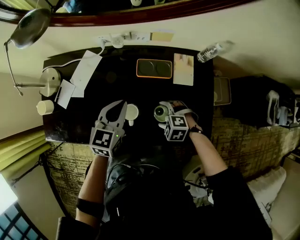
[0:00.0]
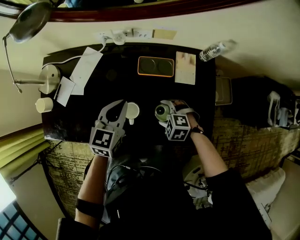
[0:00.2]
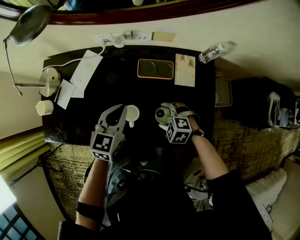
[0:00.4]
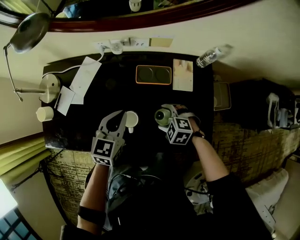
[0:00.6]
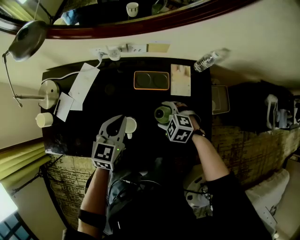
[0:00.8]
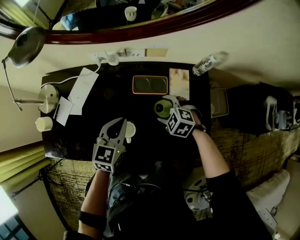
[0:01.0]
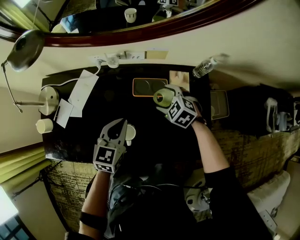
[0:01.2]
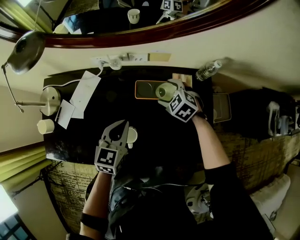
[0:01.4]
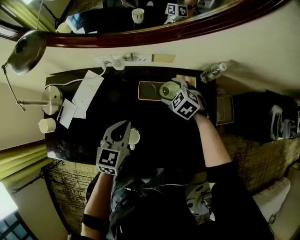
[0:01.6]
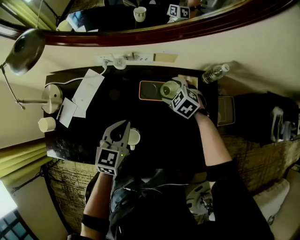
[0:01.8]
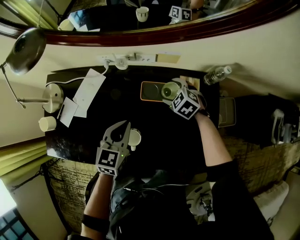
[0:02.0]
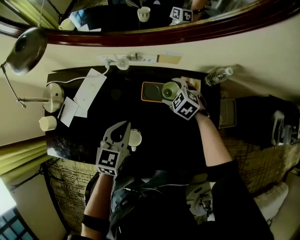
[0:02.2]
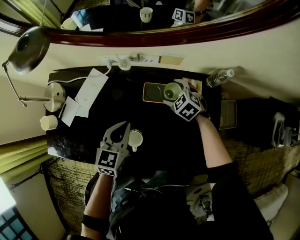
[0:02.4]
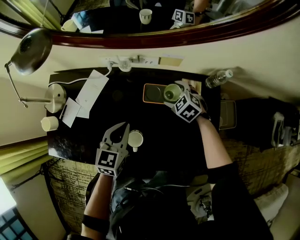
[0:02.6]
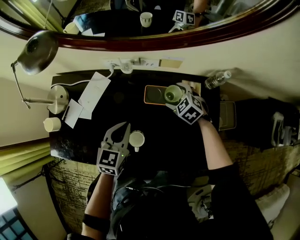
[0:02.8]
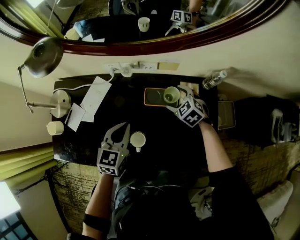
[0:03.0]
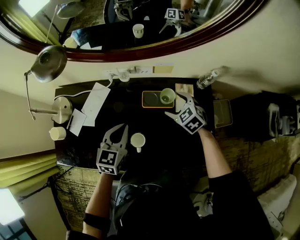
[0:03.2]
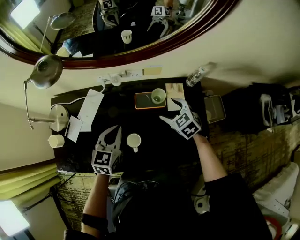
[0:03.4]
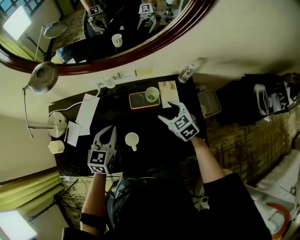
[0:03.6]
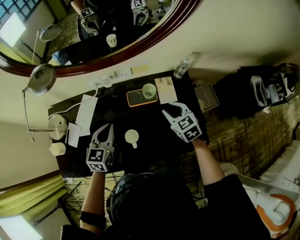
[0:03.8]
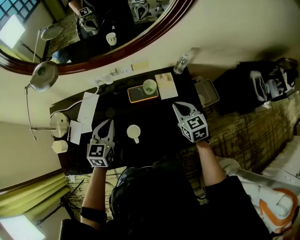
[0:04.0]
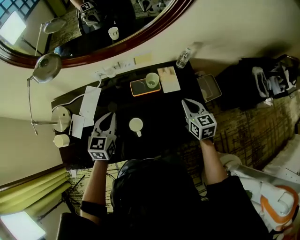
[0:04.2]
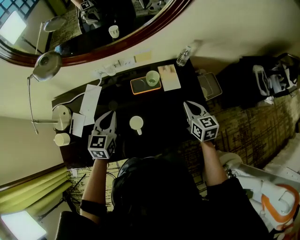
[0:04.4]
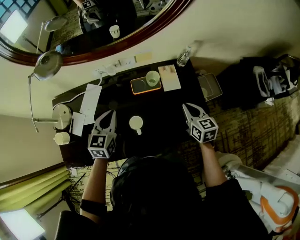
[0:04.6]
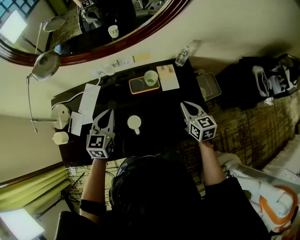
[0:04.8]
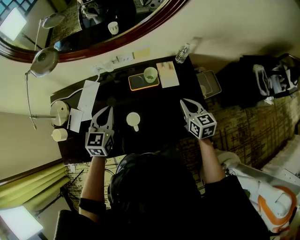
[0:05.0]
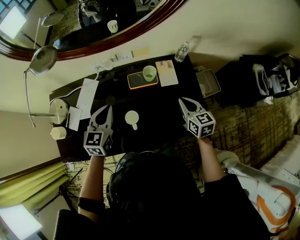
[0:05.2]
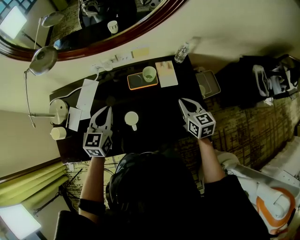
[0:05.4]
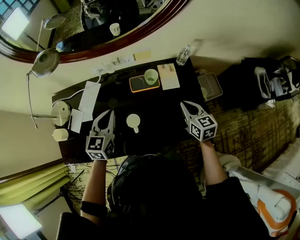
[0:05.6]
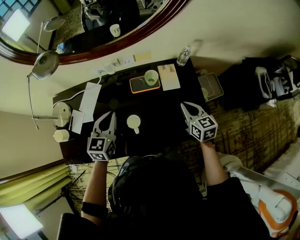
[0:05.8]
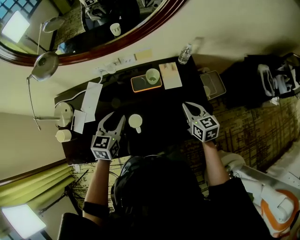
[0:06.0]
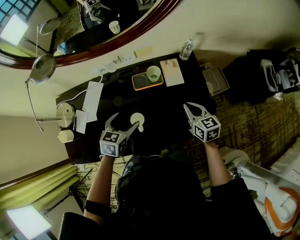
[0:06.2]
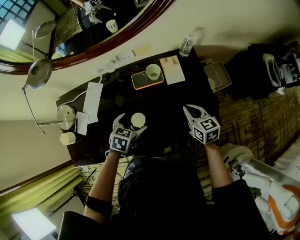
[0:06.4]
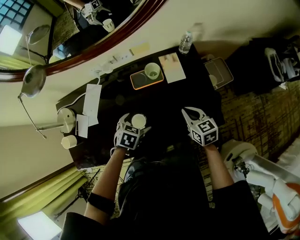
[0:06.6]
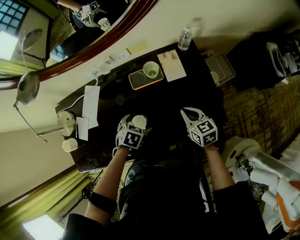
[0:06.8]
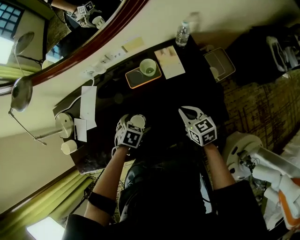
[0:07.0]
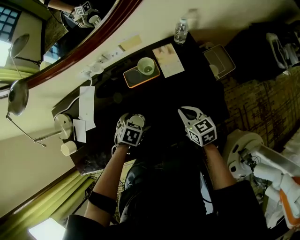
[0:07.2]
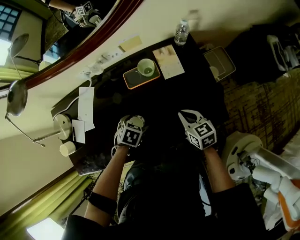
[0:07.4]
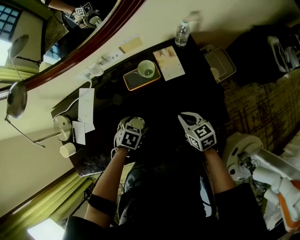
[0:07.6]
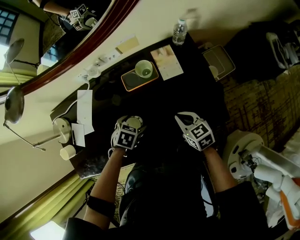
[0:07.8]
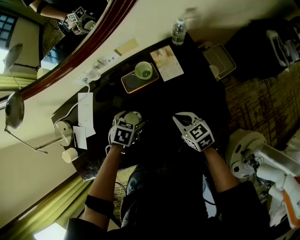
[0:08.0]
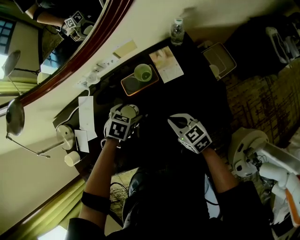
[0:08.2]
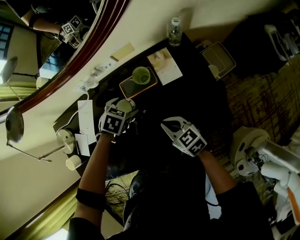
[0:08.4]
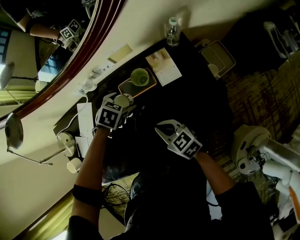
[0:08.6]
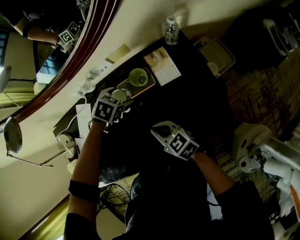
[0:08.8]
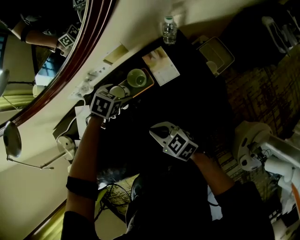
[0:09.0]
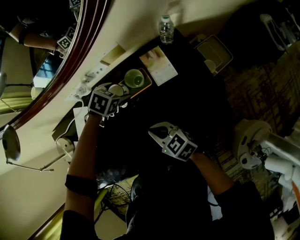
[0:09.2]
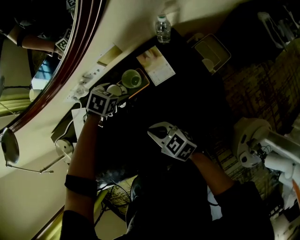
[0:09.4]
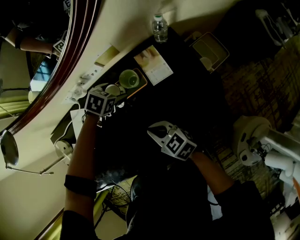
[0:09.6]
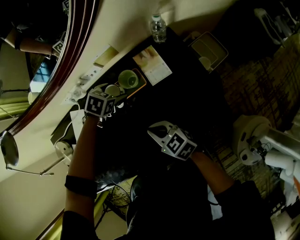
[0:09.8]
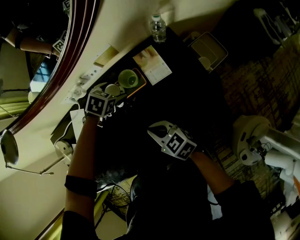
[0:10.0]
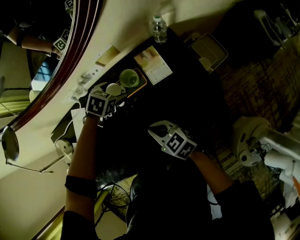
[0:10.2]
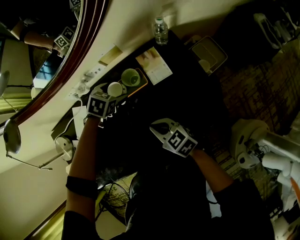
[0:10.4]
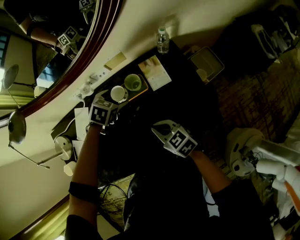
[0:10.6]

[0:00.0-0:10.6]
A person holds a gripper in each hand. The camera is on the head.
0.0 to 1.6 s: The right gripper travels forward by about 20 cm, and turns by some 30 degrees.
1.6 to 3.0 s: The grippers move only a little.
3.0 to 4.6 s: The right gripper moves backward, upward and to the right, some 25 cm, rotates around the line of its fingers by approximately 50 degrees, clockwise from behind, and closes; the left gripper moves approximately 5 cm.
4.6 to 6.0 s: There are only small adjustments of the grippers.
6.0 to 7.6 s: The right gripper shifts approximately 15 cm downward and backward. Meanwhile the left gripper moves downward and to the right, some 20 cm, tips its fingers downward by about 40 degrees, and opens.
7.6 to 9.0 s: The right gripper moves to the left, some 15 cm. The left gripper moves forward, about 20 cm.
9.0 to 10.6 s: The left gripper moves some 5 cm.

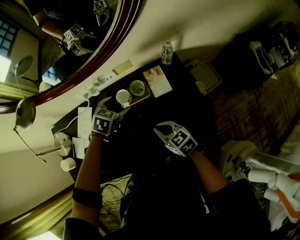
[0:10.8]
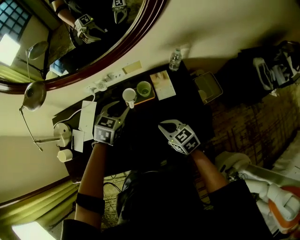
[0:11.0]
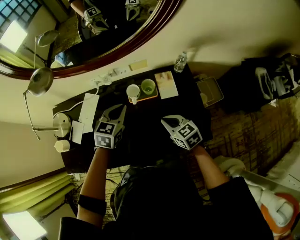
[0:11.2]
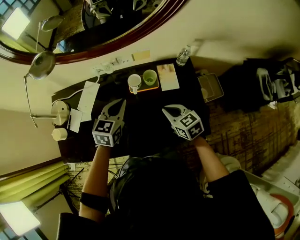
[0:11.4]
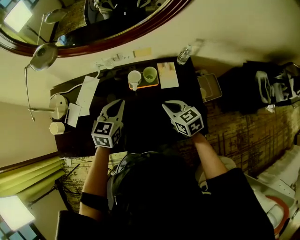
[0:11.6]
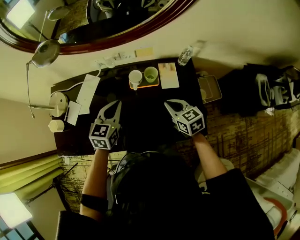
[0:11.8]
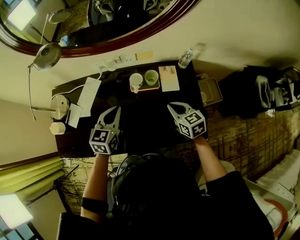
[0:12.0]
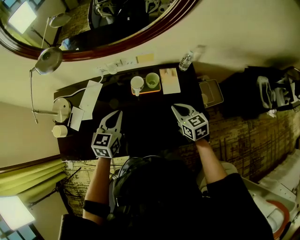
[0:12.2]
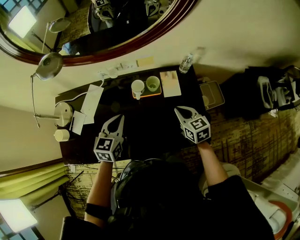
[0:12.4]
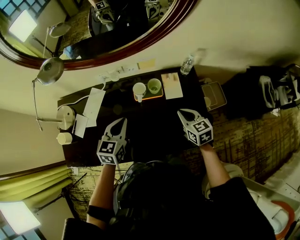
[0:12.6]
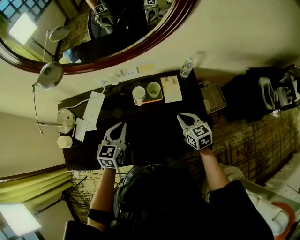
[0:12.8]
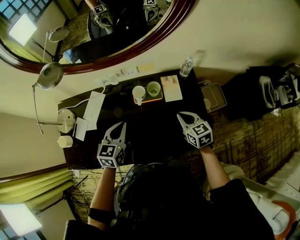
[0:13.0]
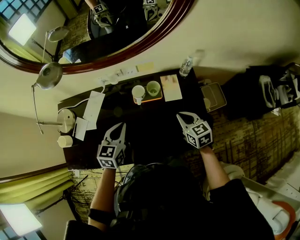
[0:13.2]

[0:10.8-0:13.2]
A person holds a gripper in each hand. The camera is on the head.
10.8 to 12.0 s: The right gripper goes approximately 5 cm to the right; the left gripper goes about 15 cm backward, to the left and upward, tilts its fingers roughly 30 degrees upward, and closes up.
12.0 to 13.2 s: The grippers stay close to where they were, moving slightly.

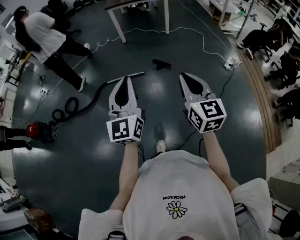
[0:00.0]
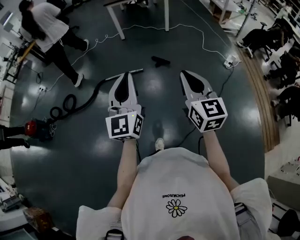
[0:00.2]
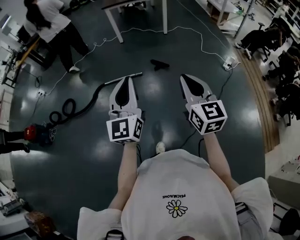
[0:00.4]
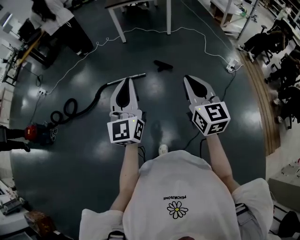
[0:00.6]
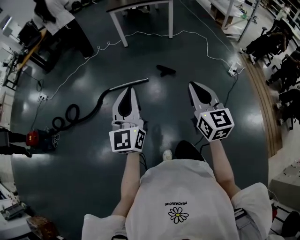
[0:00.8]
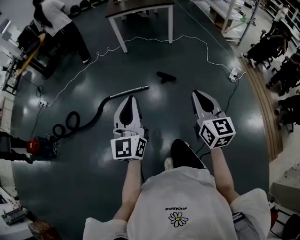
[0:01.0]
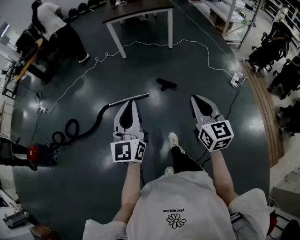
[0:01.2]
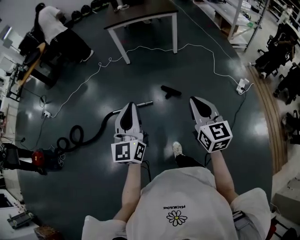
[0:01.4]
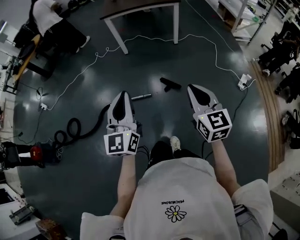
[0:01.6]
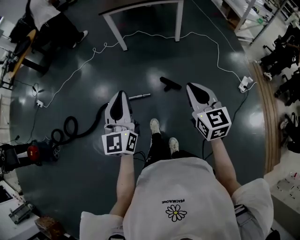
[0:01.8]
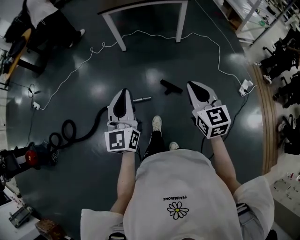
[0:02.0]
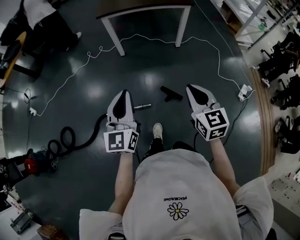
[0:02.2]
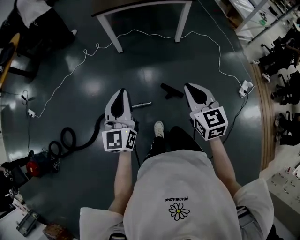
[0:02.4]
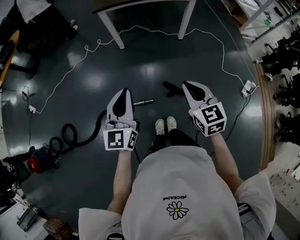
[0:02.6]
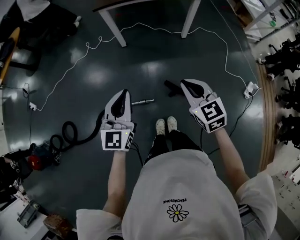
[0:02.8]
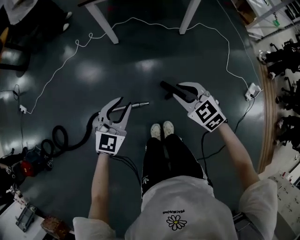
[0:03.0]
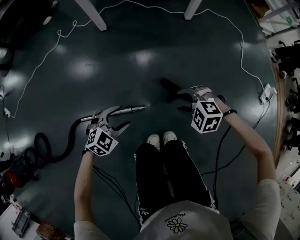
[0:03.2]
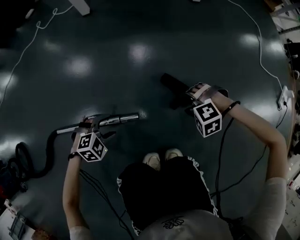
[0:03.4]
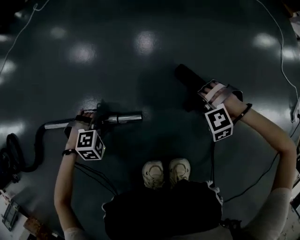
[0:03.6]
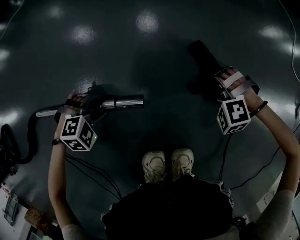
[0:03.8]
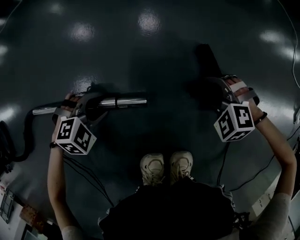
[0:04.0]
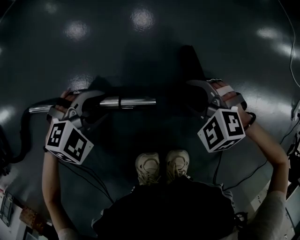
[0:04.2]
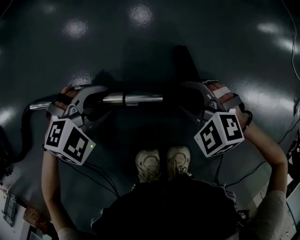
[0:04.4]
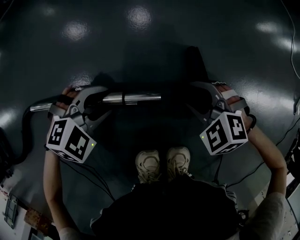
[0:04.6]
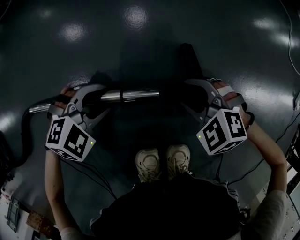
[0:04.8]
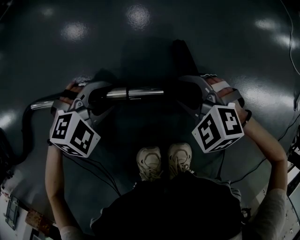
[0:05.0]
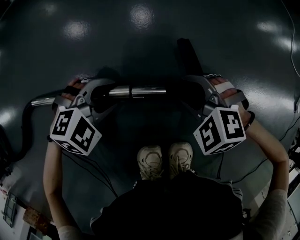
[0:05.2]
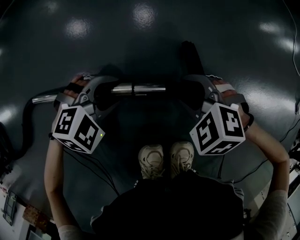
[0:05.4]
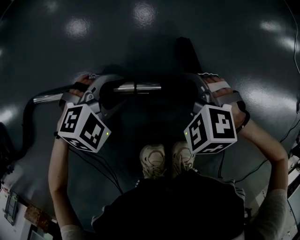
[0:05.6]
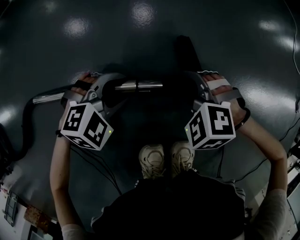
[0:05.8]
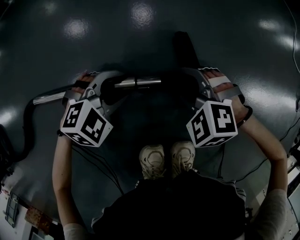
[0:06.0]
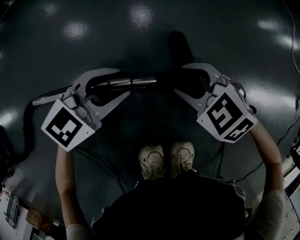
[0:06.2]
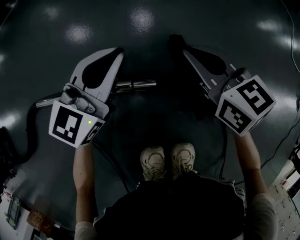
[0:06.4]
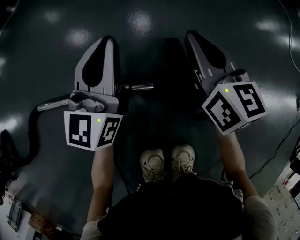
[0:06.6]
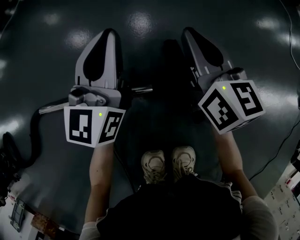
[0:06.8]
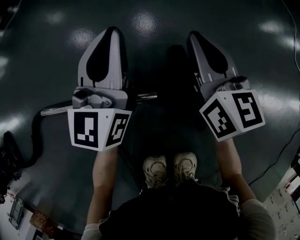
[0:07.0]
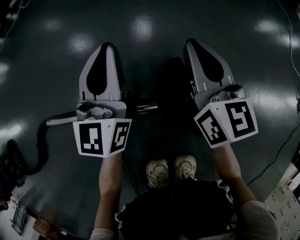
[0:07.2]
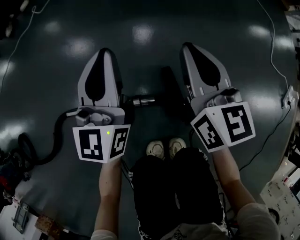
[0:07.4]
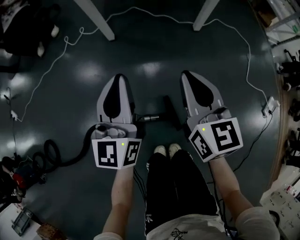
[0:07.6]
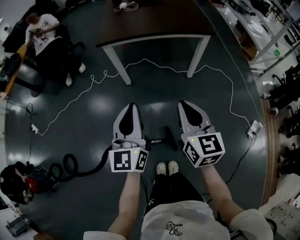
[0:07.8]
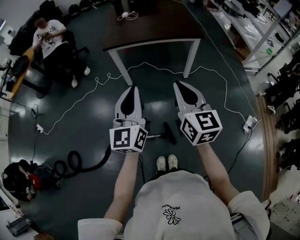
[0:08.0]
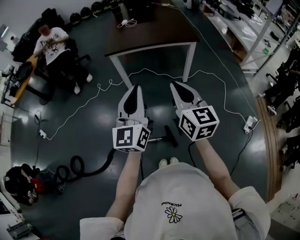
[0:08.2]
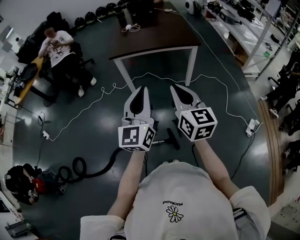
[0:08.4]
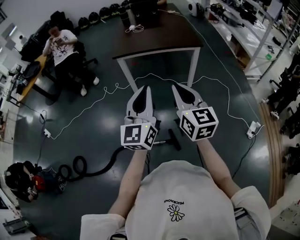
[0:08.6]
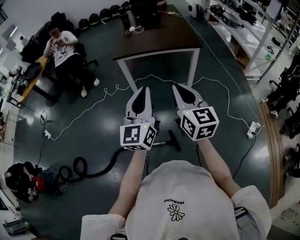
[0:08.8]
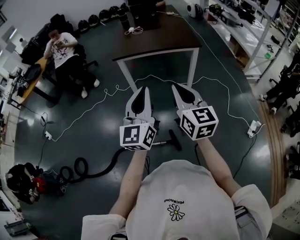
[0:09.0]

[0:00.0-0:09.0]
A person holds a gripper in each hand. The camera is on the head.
0.0 to 1.6 s: Both grippers travel together forward, approximately 40 cm.
1.6 to 3.0 s: Both grippers move forward and downward, approximately 50 cm. The right gripper changes its angle by some 40 degrees. The left gripper rotates approximately 40 degrees, and opens.
3.0 to 4.4 s: The two grippers go approximately 70 cm downward. The left gripper tilts its fingers approximately 40 degrees downward. The right gripper changes its angle by about 40 degrees, and opens up.
4.4 to 6.0 s: The grippers move only a little.
6.0 to 7.6 s: Both grippers move upward, approximately 70 cm. The right gripper tips its fingers upward by roughly 50 degrees, and closes its fingers. The left gripper points its fingers about 60 degrees further upward, and closes up.
7.6 to 9.0 s: Both grippers move upward, some 50 cm.

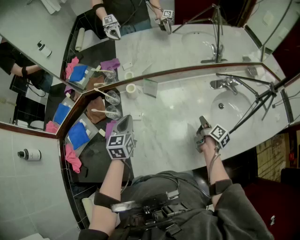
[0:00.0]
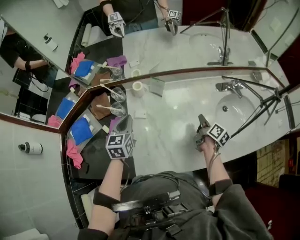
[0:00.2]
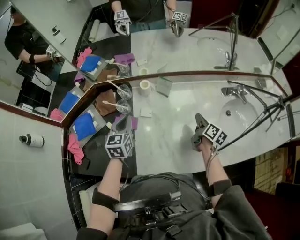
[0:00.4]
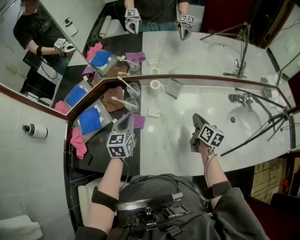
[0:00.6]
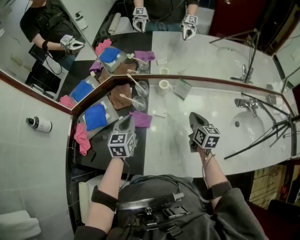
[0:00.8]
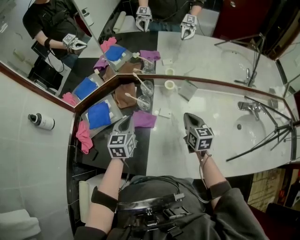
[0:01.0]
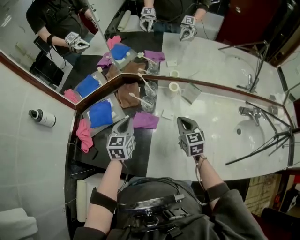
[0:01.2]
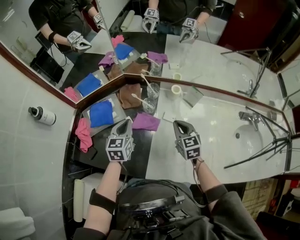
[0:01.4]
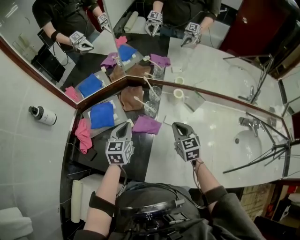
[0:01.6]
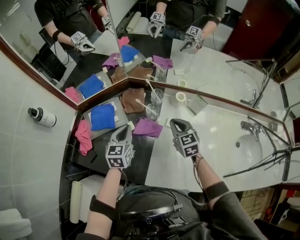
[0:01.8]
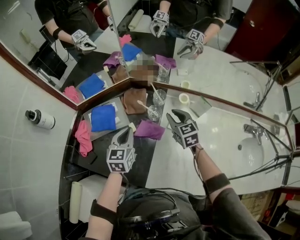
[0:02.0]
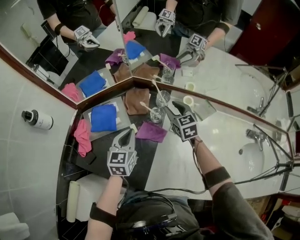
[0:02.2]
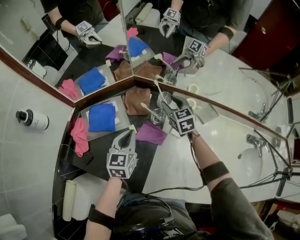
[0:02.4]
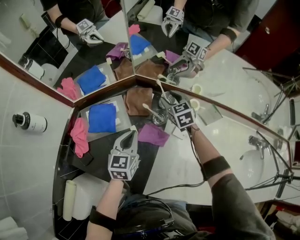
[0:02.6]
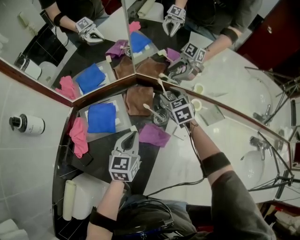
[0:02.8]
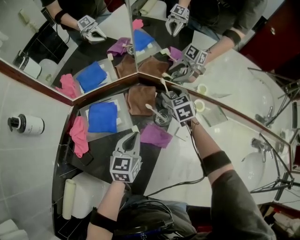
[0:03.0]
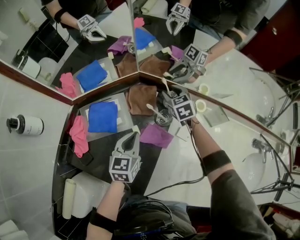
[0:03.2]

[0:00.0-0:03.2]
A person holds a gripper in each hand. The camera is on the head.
0.0 to 1.6 s: The left gripper shifts by roughly 25 cm, while the right gripper moves roughly 40 cm, and rotates around the line of its fingers by about 80 degrees, counterclockwise from behind.
1.6 to 3.2 s: The left gripper is displaced downward by about 5 cm, while the right gripper goes approximately 25 cm forward, and opens.
